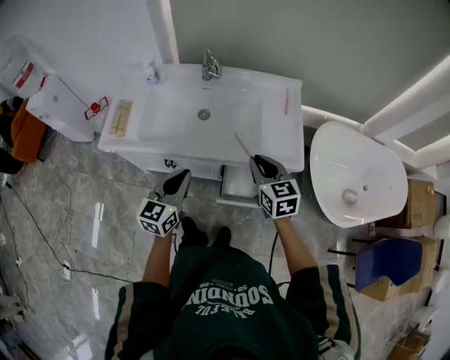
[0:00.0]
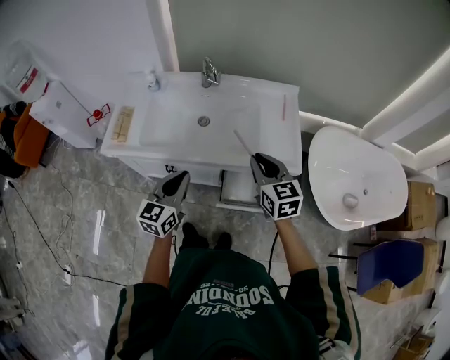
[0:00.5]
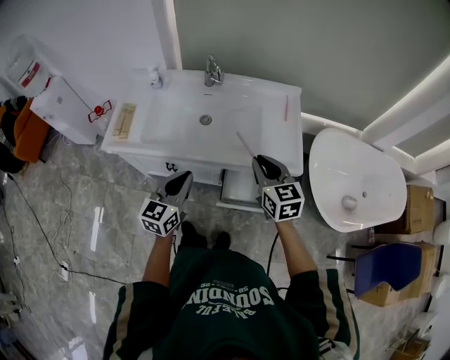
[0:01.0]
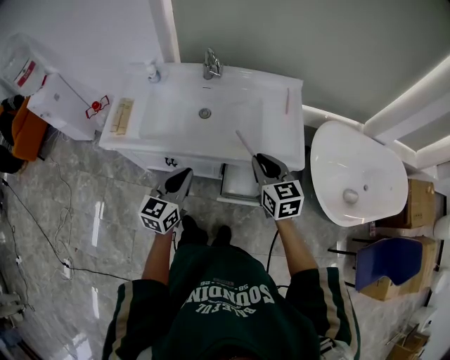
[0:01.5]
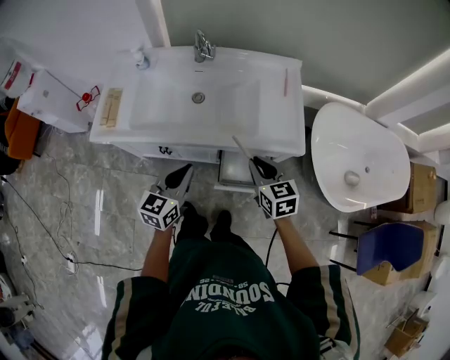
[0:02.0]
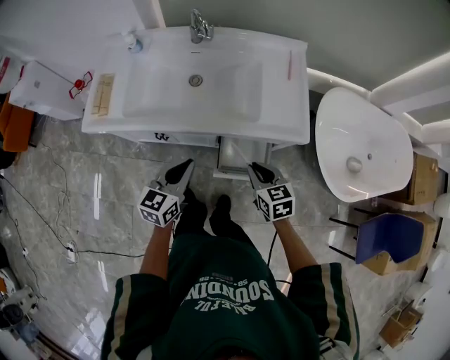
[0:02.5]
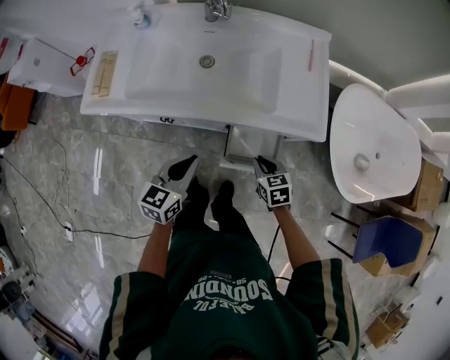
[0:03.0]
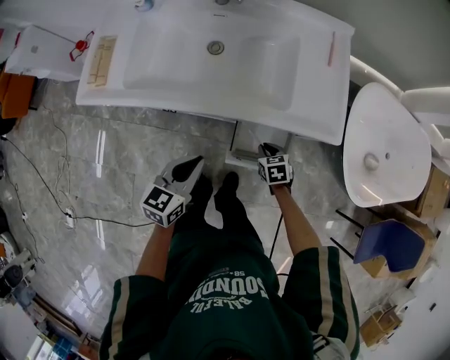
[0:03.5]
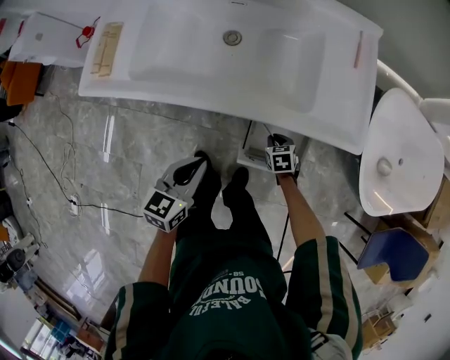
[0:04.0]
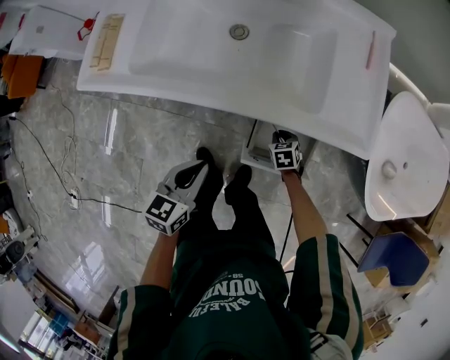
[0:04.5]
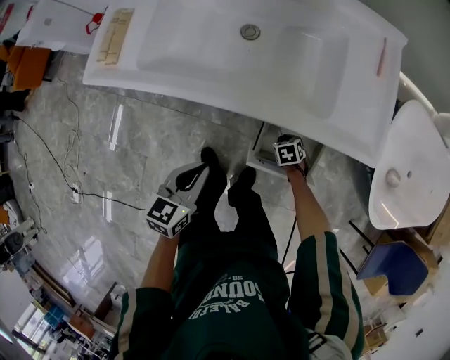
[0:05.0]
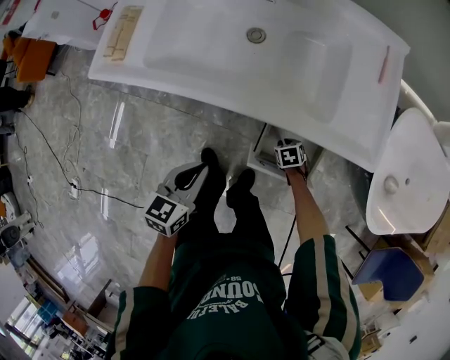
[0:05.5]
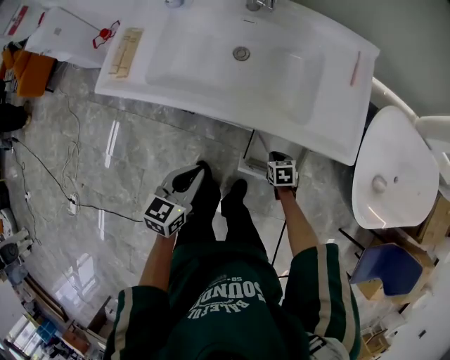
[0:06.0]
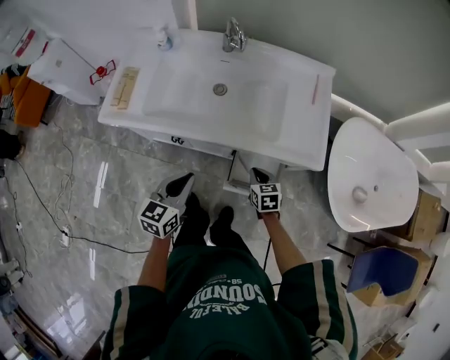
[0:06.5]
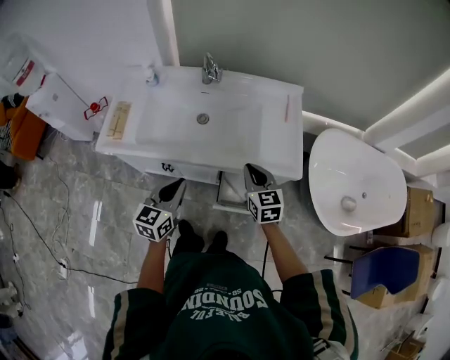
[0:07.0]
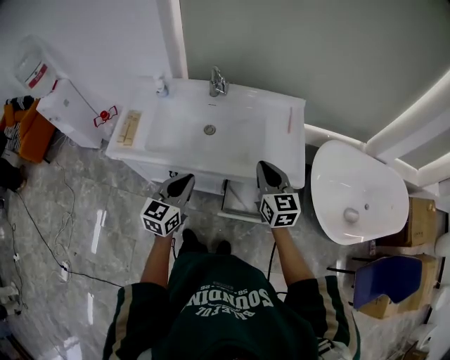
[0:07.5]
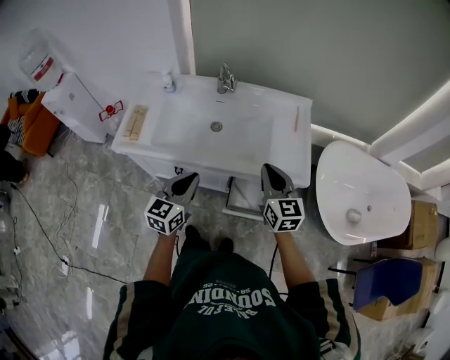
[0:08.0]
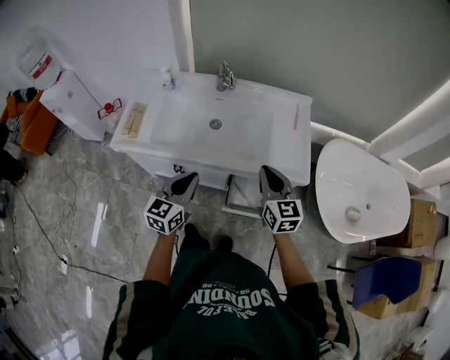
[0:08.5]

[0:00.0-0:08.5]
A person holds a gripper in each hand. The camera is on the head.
0:00.0 to 0:02.0: The right gripper is displaced downward by roughly 5 cm.
0:02.0 to 0:04.0: The right gripper moves downward, roughly 40 cm, and tips its fingers downward by some 30 degrees; the left gripper is displaced downward by about 15 cm.
0:04.0 to 0:06.5: The left gripper is displaced upward by approximately 10 cm. The right gripper travels upward by about 20 cm.
0:06.5 to 0:08.5: The right gripper travels upward by approximately 30 cm, and tilts its fingers about 30 degrees upward. Meanwhile the left gripper is displaced upward by about 10 cm.

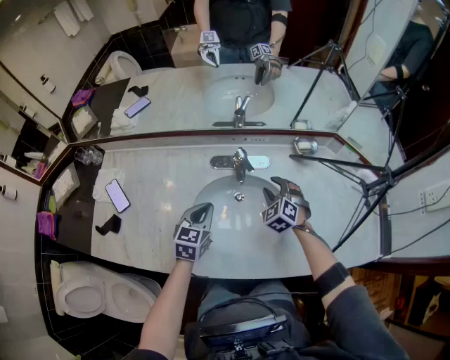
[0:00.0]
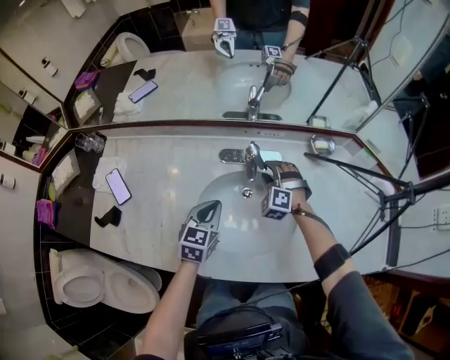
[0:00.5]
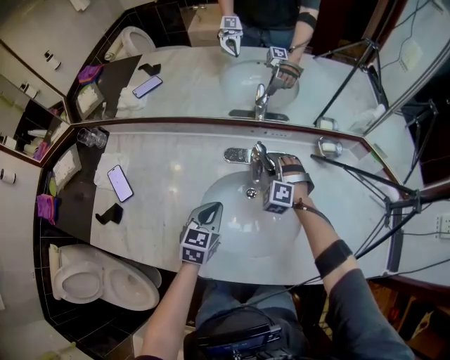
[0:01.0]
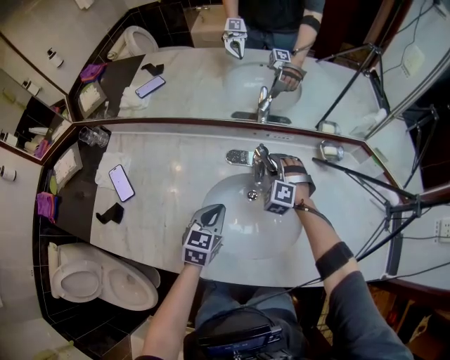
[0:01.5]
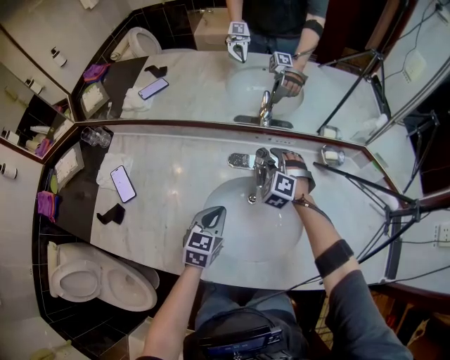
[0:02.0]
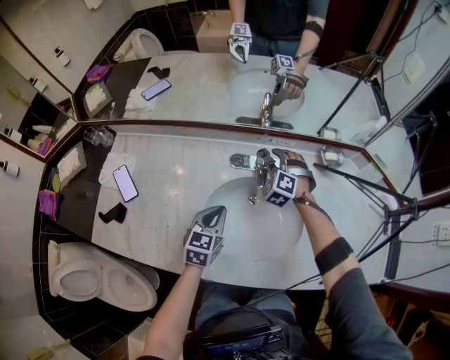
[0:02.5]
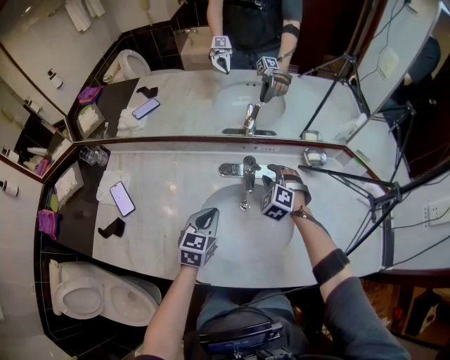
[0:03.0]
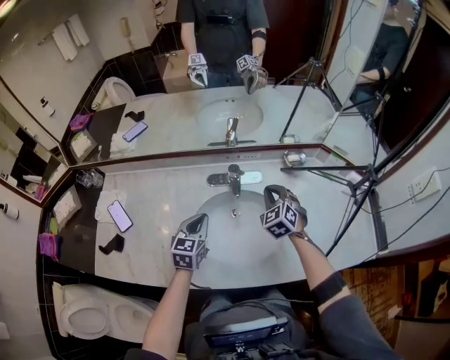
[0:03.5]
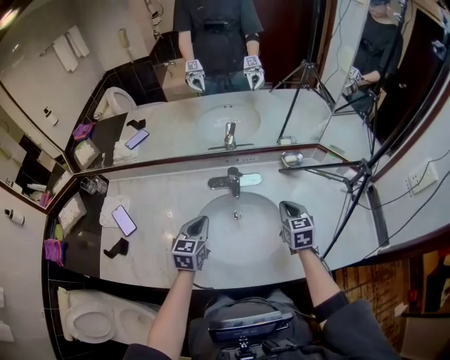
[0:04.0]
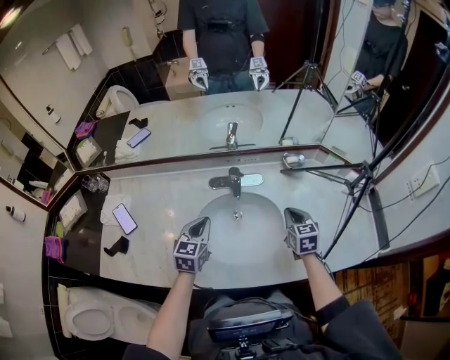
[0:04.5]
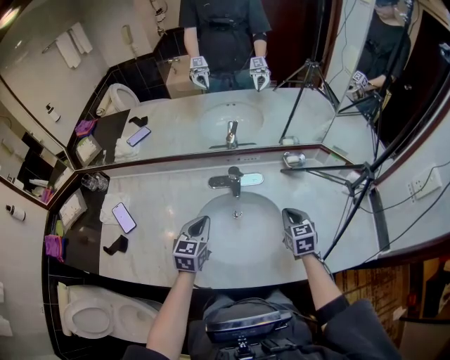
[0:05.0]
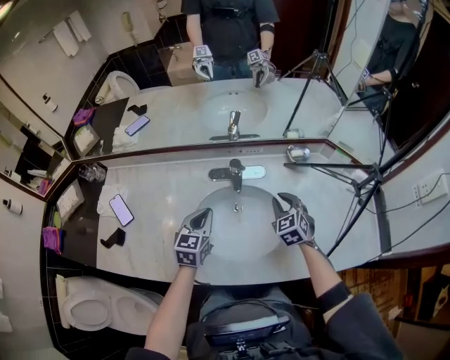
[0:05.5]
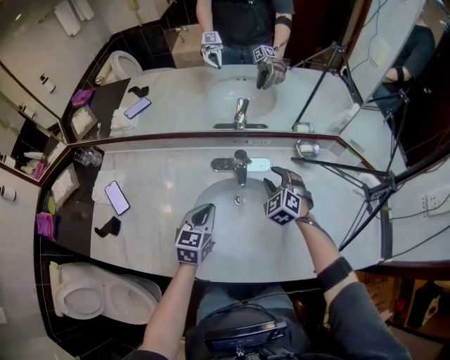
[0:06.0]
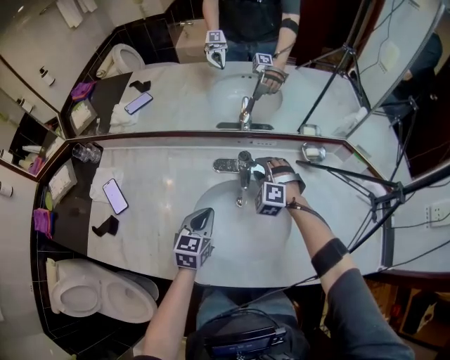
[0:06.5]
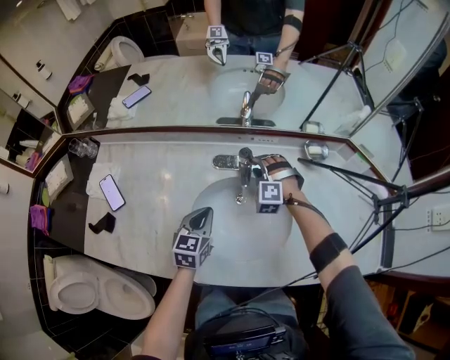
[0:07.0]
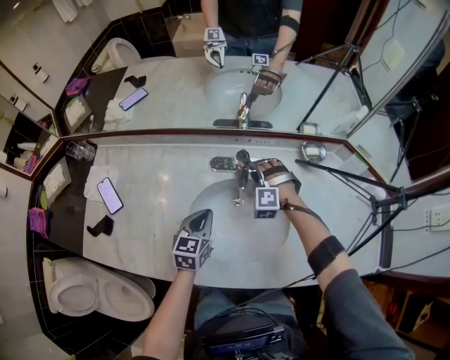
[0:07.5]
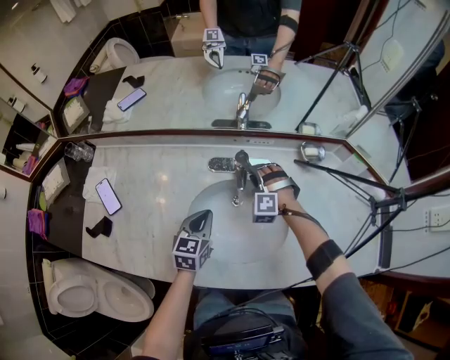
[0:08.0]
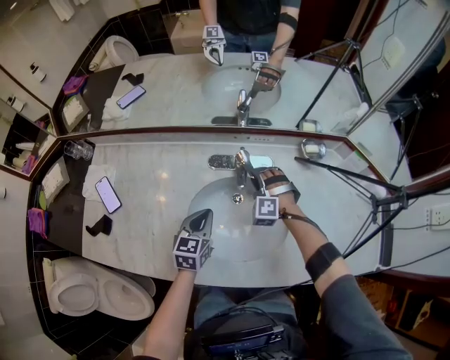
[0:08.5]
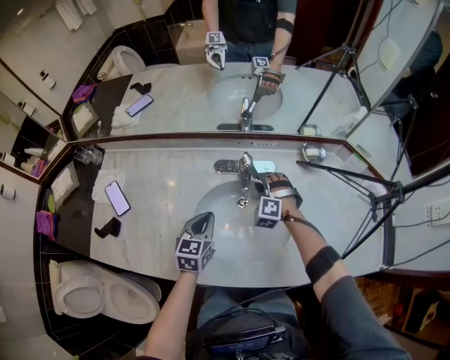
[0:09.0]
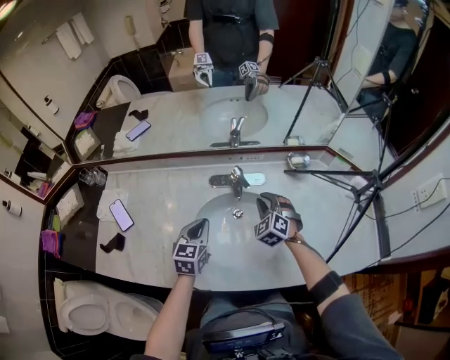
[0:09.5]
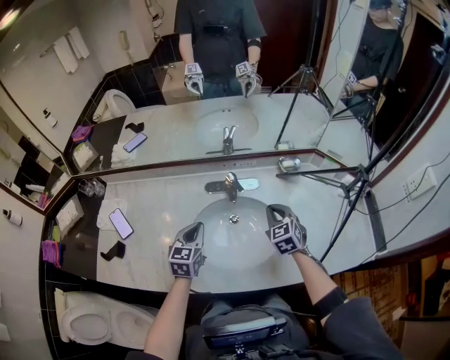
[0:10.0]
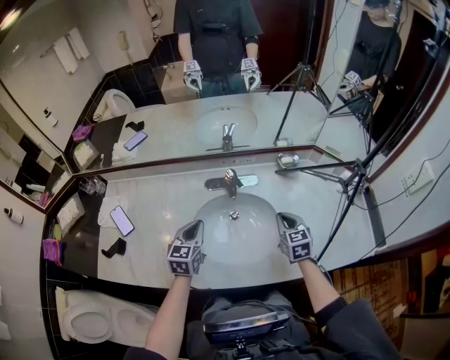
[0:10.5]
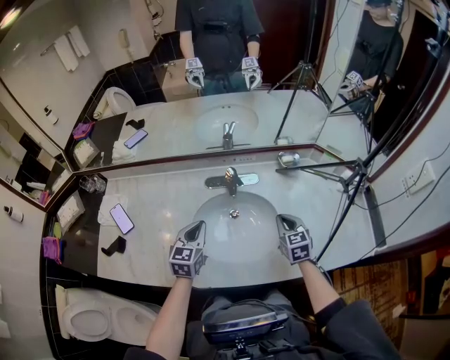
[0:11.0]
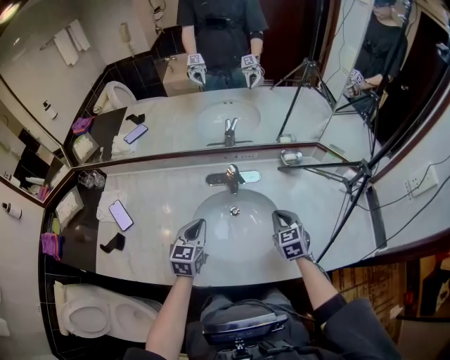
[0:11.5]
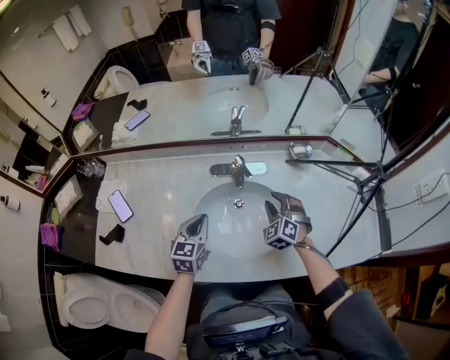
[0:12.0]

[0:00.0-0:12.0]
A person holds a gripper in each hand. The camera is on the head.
0:00.0 to 0:02.0: The right gripper moves forward and to the left, about 15 cm, and changes its angle by about 20 degrees.
0:02.0 to 0:04.0: The left gripper heads upward, covering approximately 5 cm; the right gripper goes some 25 cm backward, to the right and upward, rolls clockwise, seen from behind, by some 70 degrees, and closes its fingers.
0:04.0 to 0:06.0: The right gripper is displaced forward and to the left by roughly 15 cm, rotates around the line of its fingers by roughly 50 degrees, counterclockwise from behind, and opens its fingers.
0:06.0 to 0:08.0: The right gripper is displaced downward and to the left by some 10 cm, and changes its angle by approximately 40 degrees.
0:08.0 to 0:10.0: The left gripper heads upward, covering some 10 cm. The right gripper goes approximately 20 cm backward, upward and to the right, rotates around the line of its fingers by roughly 70 degrees, clockwise from behind, and closes.
0:10.0 to 0:12.0: The right gripper turns by about 30 degrees, and opens up.

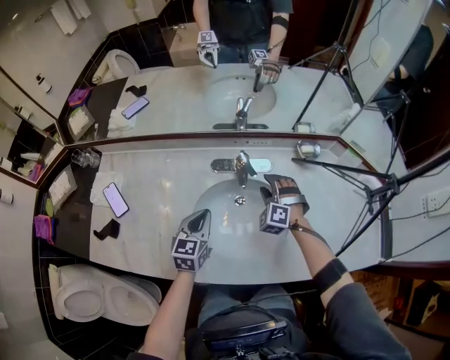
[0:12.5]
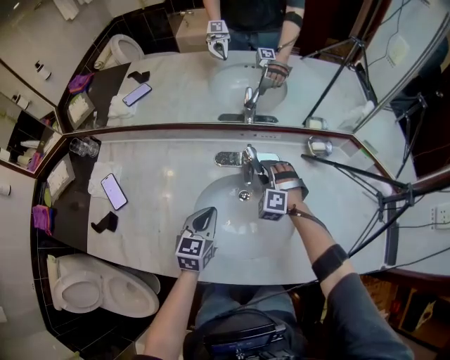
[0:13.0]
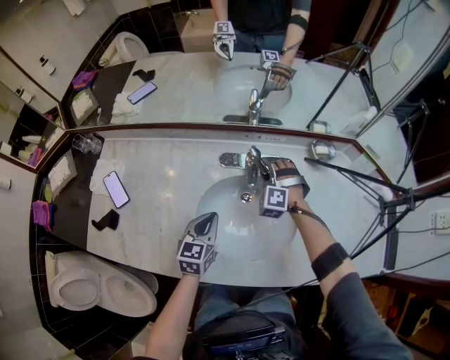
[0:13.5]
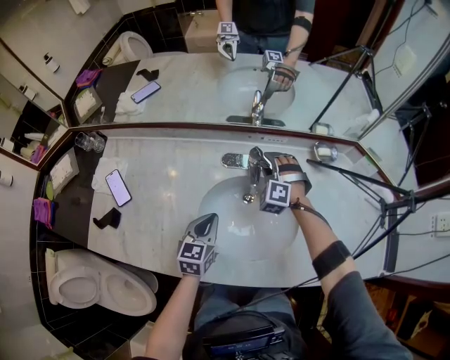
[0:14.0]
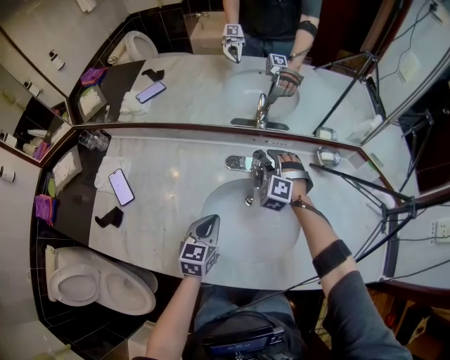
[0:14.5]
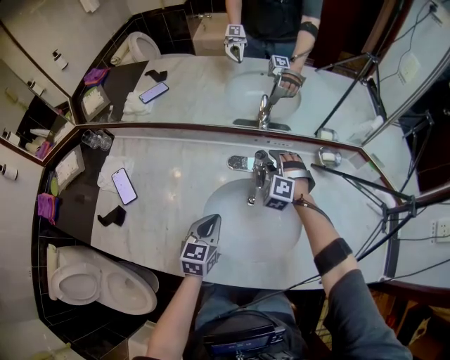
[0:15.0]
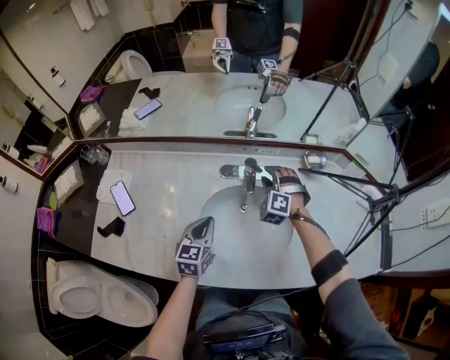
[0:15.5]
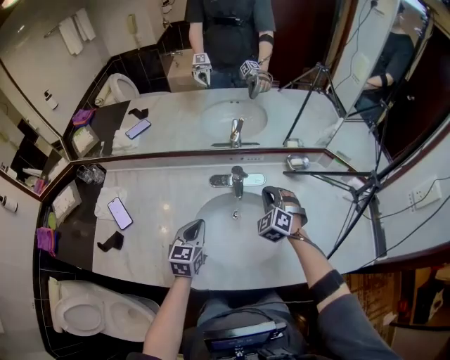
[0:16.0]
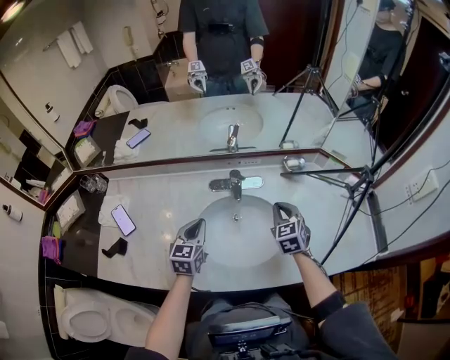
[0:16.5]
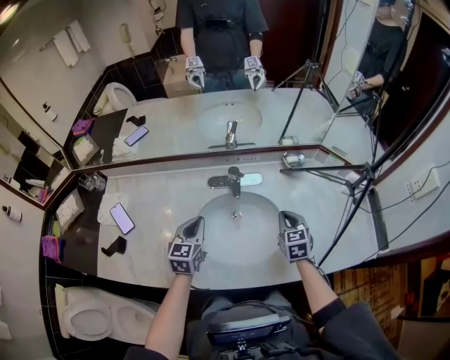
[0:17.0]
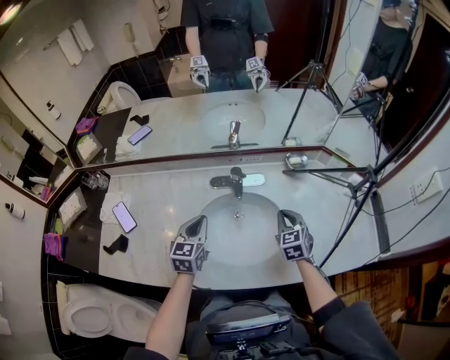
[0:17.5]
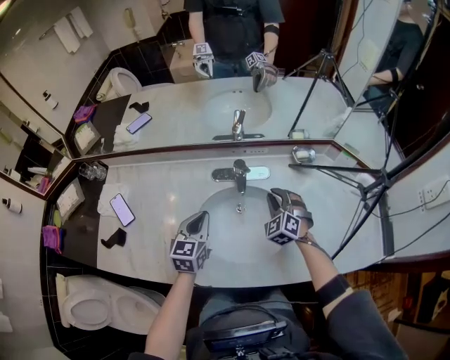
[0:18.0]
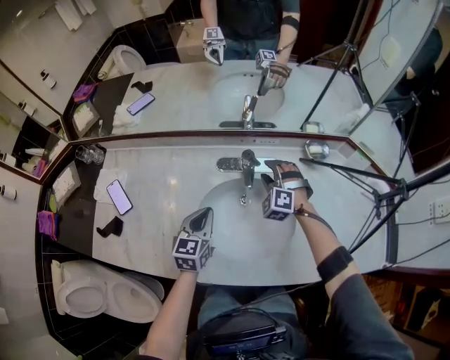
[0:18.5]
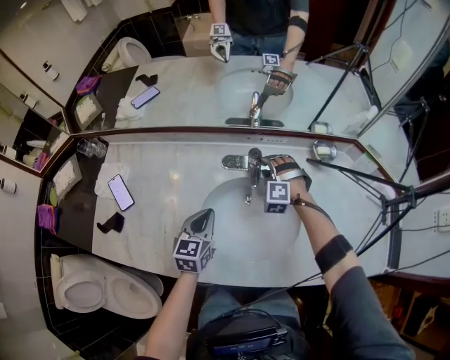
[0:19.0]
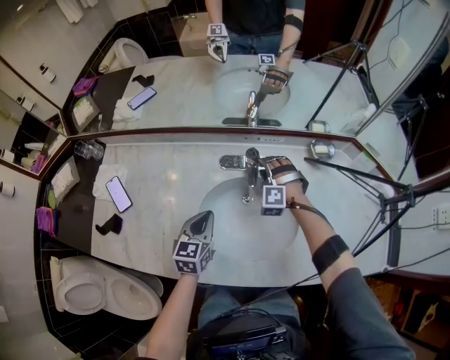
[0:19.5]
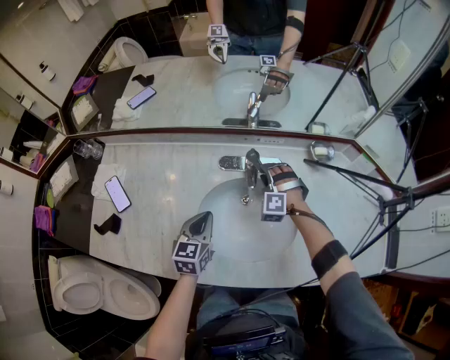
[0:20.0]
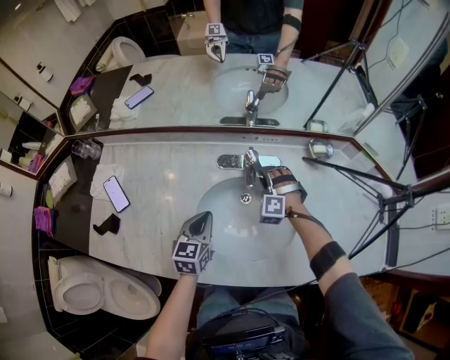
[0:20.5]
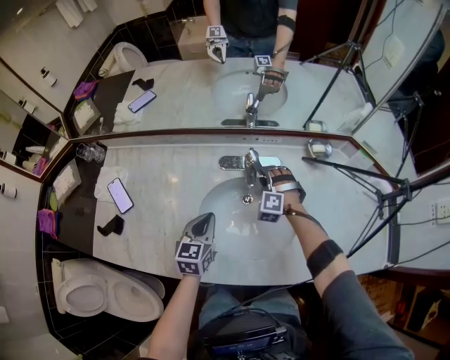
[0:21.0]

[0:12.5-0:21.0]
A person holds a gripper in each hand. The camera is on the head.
0:12.5 to 0:14.5: The right gripper is displaced forward and to the left by about 10 cm.
0:14.5 to 0:16.5: The left gripper goes about 10 cm upward. The right gripper is displaced backward, to the right and upward by about 25 cm, twists about 60 degrees clockwise, seen from behind, and closes its fingers.
0:16.5 to 0:19.0: The left gripper shifts roughly 5 cm downward. The right gripper travels forward, to the left and downward by roughly 20 cm, rolls counterclockwise, seen from behind, by approximately 70 degrees, and opens its fingers.
0:19.0 to 0:21.0: The grippers make only small movements.
